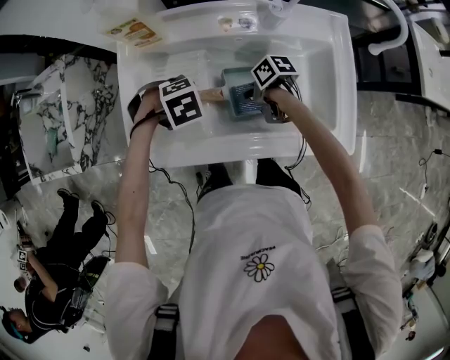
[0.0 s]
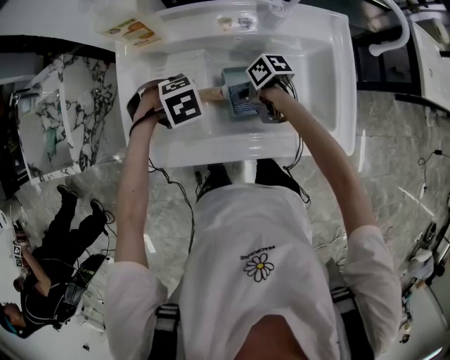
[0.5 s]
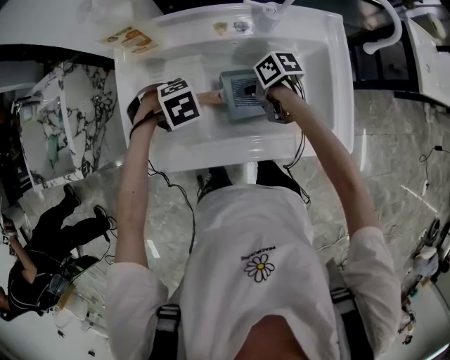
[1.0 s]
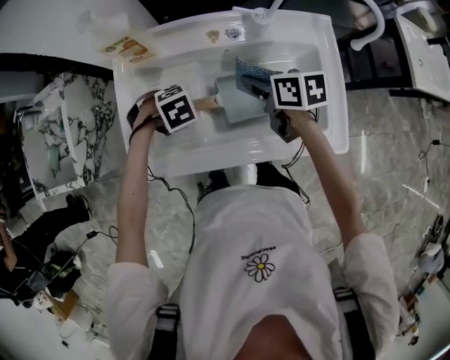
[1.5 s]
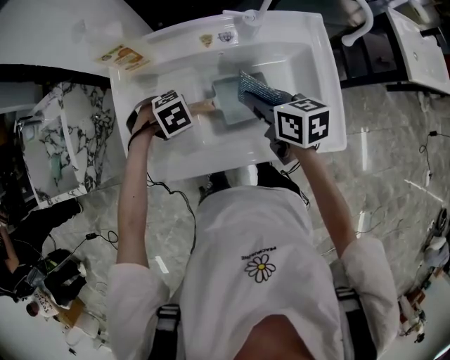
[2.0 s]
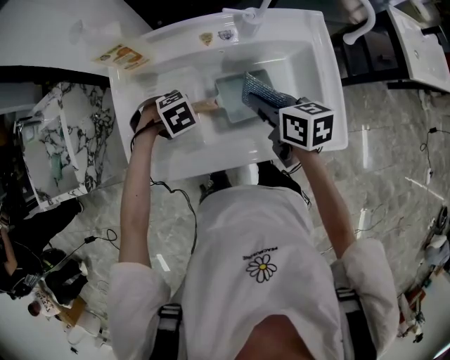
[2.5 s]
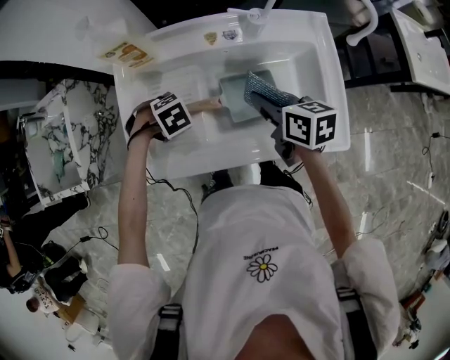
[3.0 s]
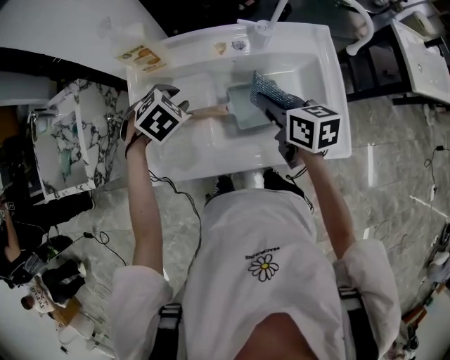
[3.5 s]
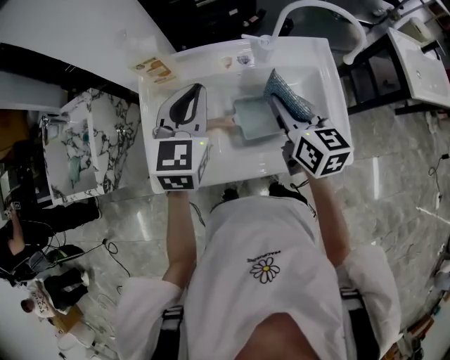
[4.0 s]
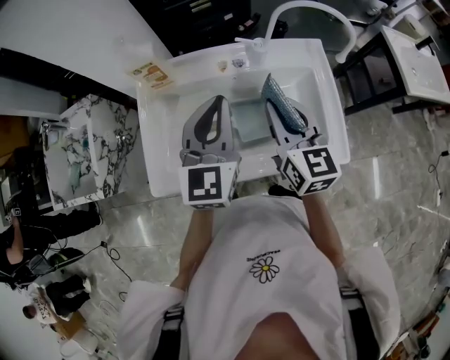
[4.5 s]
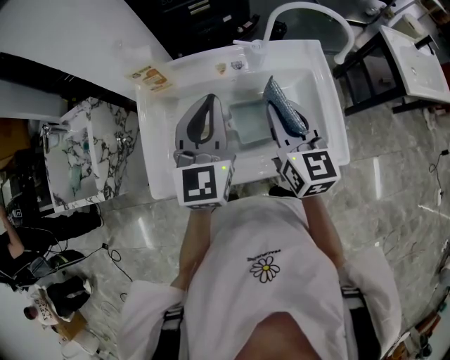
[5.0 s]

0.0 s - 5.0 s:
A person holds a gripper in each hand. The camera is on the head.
0.0 s - 2.5 s: The right gripper is displaced upward by roughly 15 cm, and changes its angle by about 50 degrees.
2.5 s - 5.0 s: The left gripper travels upward by roughly 30 cm, points its fingers approximately 80 degrees further upward, and closes up. The right gripper travels upward by some 15 cm, and changes its angle by approximately 40 degrees.

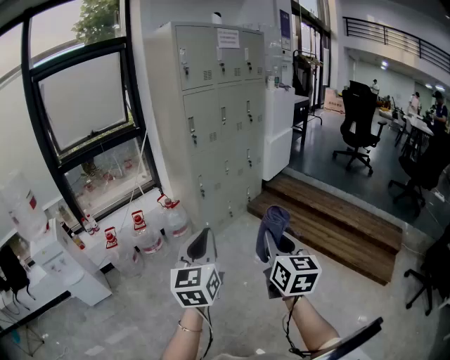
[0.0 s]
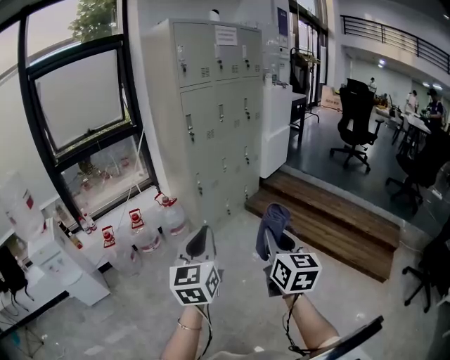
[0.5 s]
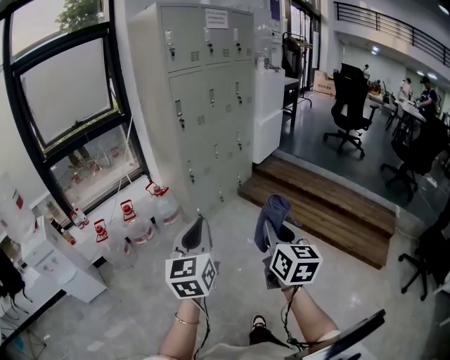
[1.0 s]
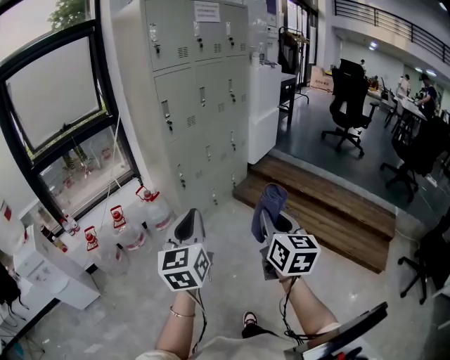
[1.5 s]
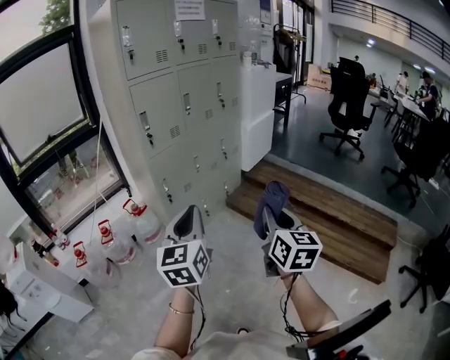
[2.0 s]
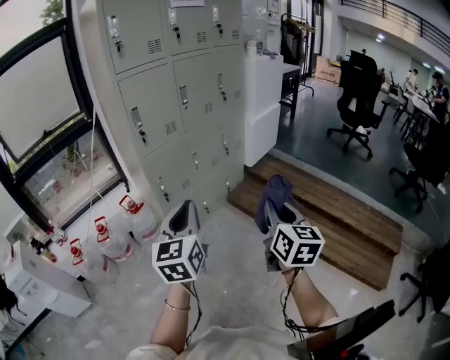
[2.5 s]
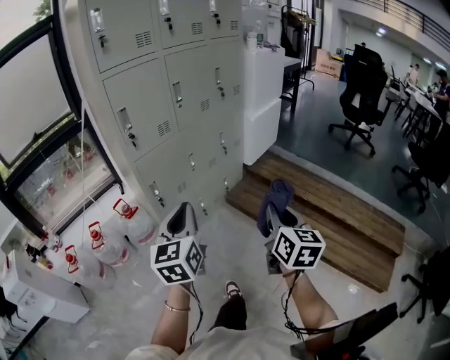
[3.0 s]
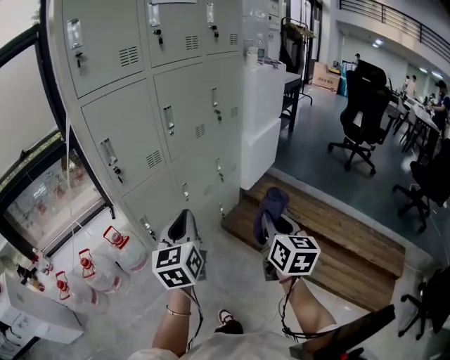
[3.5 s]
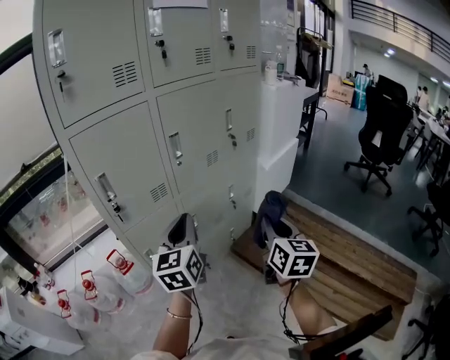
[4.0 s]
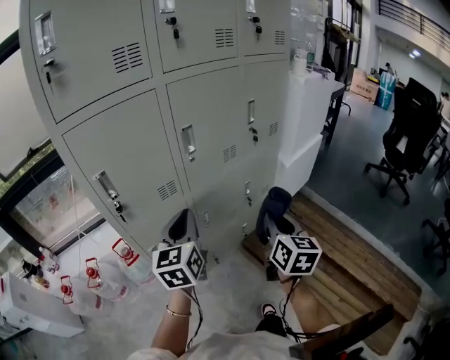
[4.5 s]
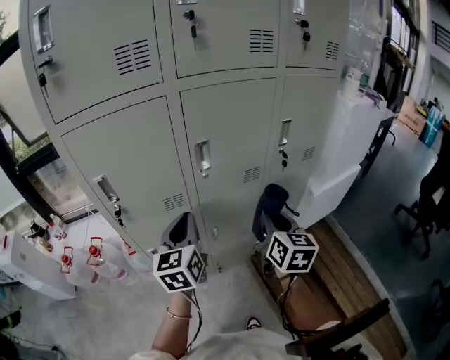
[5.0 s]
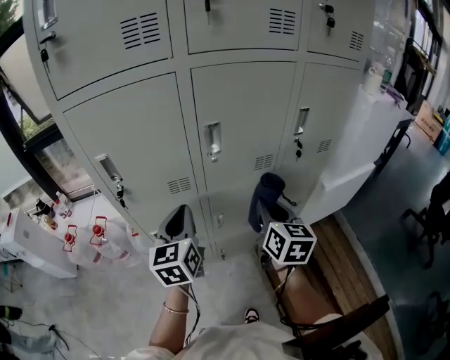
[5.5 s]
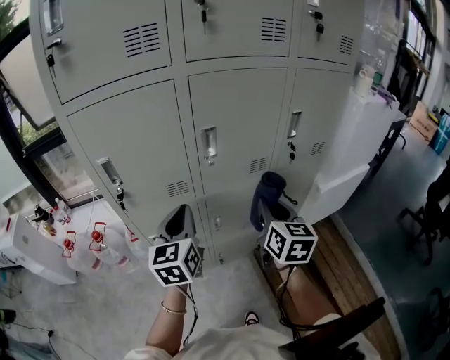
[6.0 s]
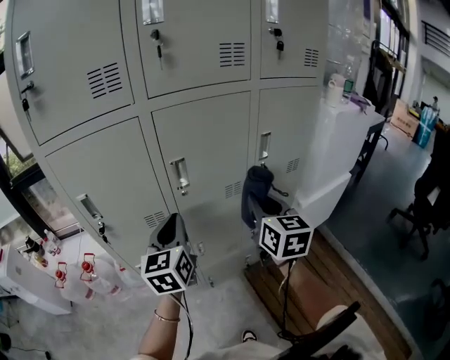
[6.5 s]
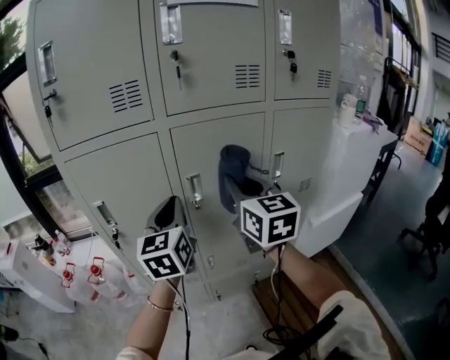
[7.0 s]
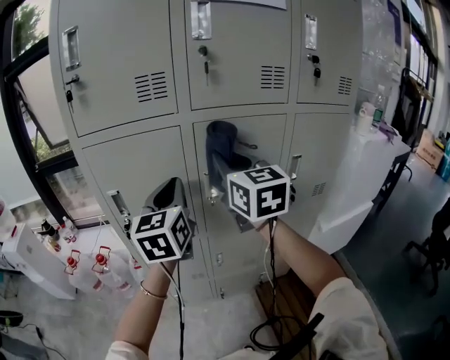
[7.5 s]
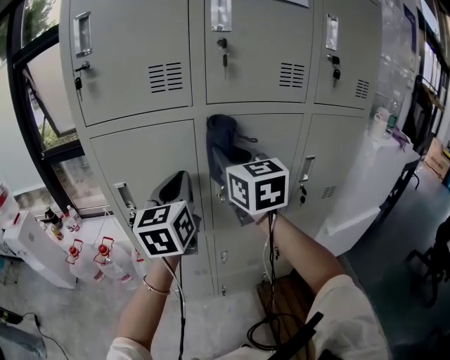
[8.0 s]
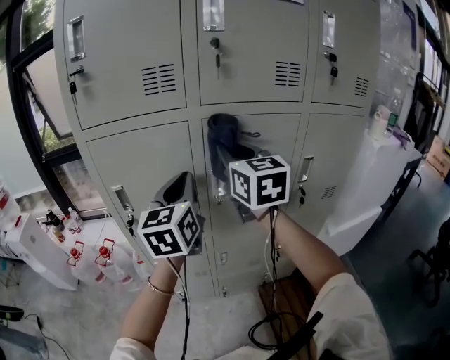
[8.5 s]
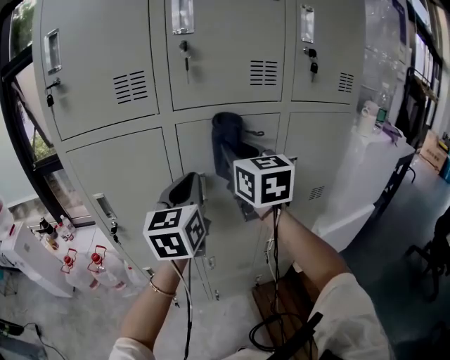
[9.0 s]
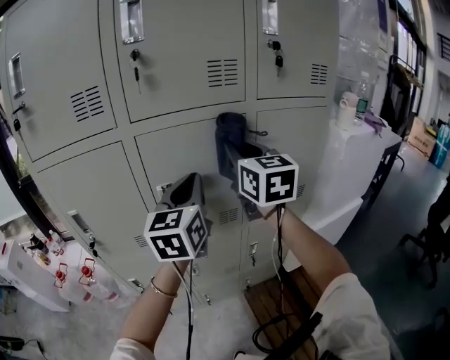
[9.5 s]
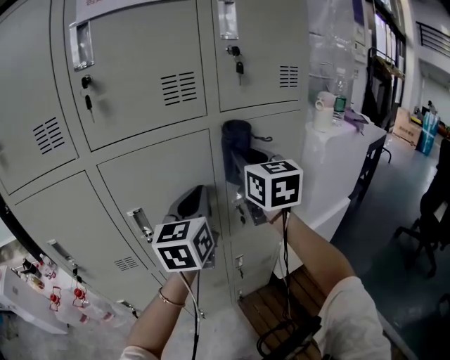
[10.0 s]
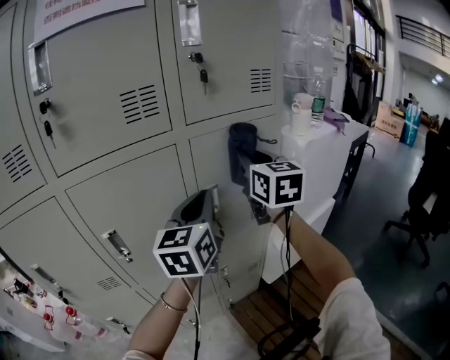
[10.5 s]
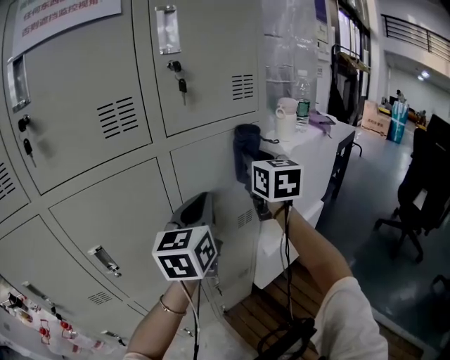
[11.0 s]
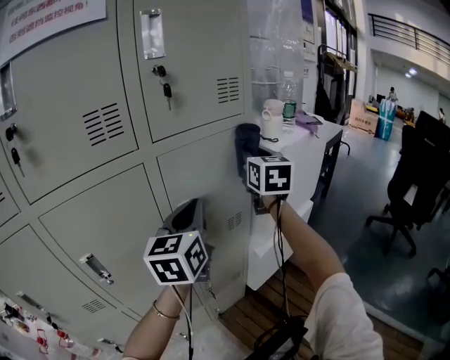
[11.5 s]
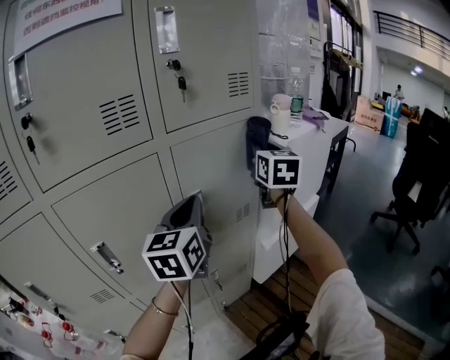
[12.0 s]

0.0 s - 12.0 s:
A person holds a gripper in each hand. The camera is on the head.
0.0 s - 2.0 s: The right gripper travels forward and to the right by roughly 30 cm; the left gripper shifts approximately 30 cm forward.
2.0 s - 4.0 s: Both grippers are carried forward, about 50 cm.
4.0 s - 6.0 s: The left gripper ends up approximately 15 cm from where it was, and changes its angle by some 30 degrees. The right gripper changes place by about 25 cm, and rotates some 30 degrees.
6.0 s - 8.0 s: The right gripper goes about 30 cm upward, to the left and forward, and turns by approximately 30 degrees. Meanwhile the left gripper shifts roughly 20 cm upward and forward.
8.0 s - 10.0 s: The two grippers go some 30 cm to the right.
10.0 s - 12.0 s: The right gripper moves to the right and forward, some 20 cm, and swivels approximately 30 degrees. Meanwhile the left gripper shifts roughly 10 cm to the right.

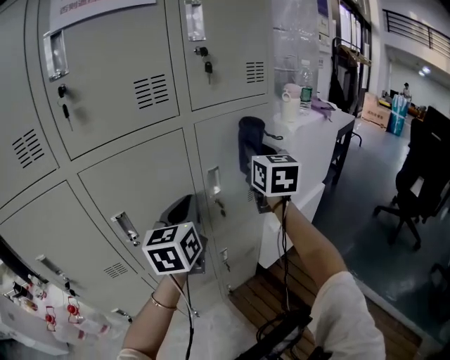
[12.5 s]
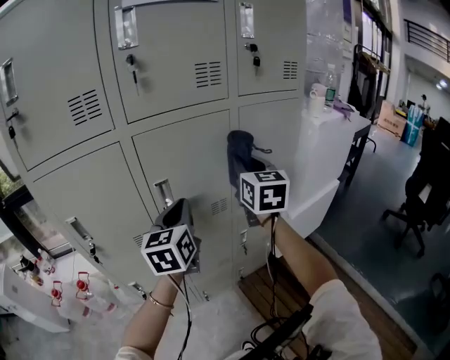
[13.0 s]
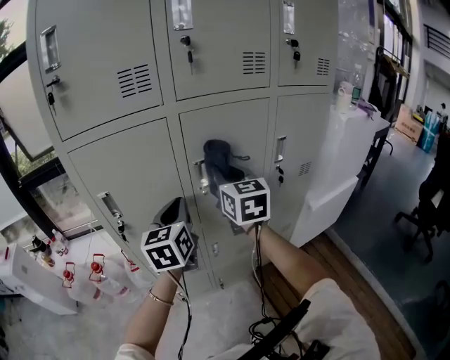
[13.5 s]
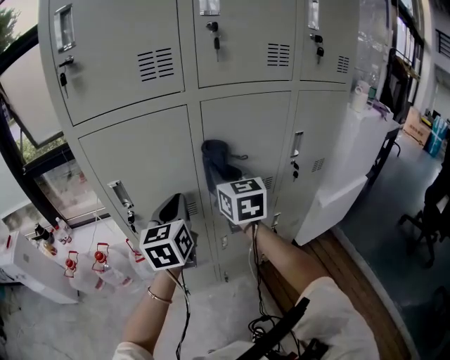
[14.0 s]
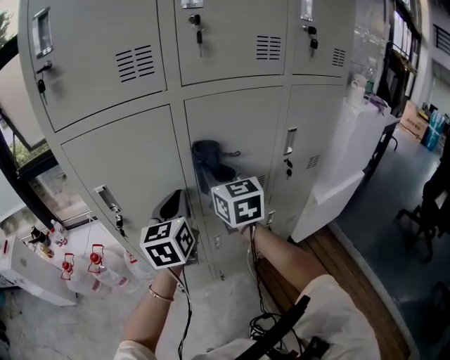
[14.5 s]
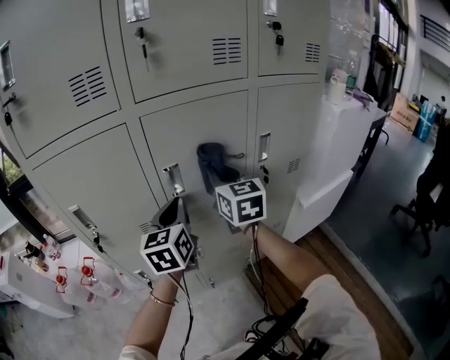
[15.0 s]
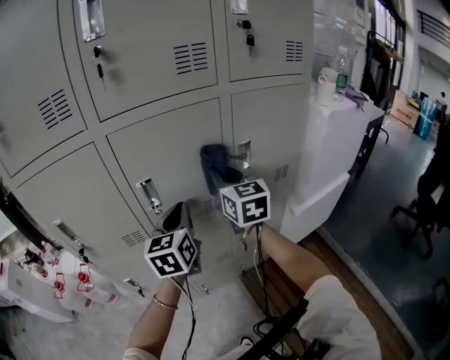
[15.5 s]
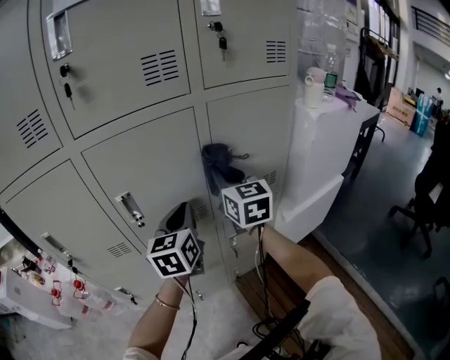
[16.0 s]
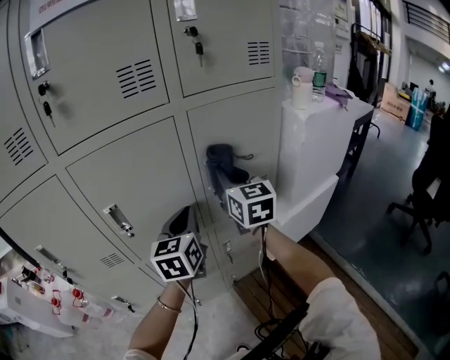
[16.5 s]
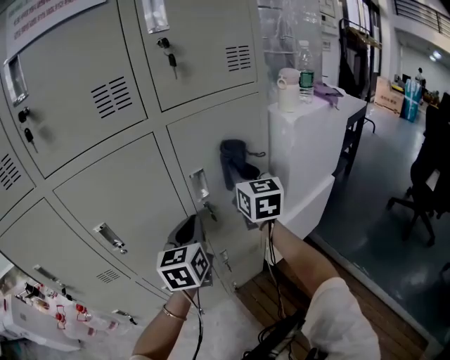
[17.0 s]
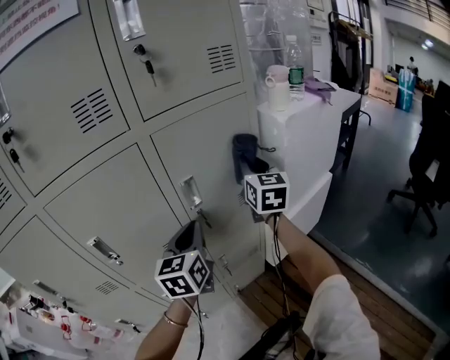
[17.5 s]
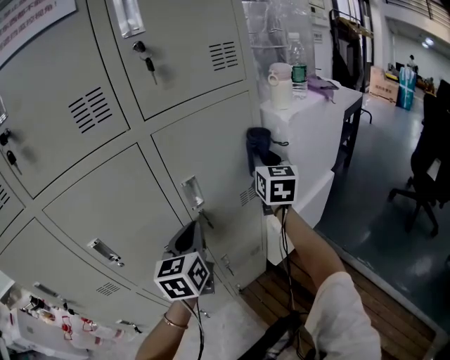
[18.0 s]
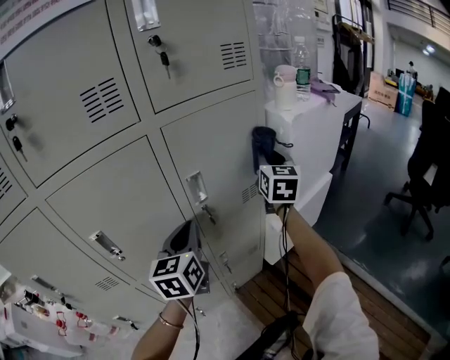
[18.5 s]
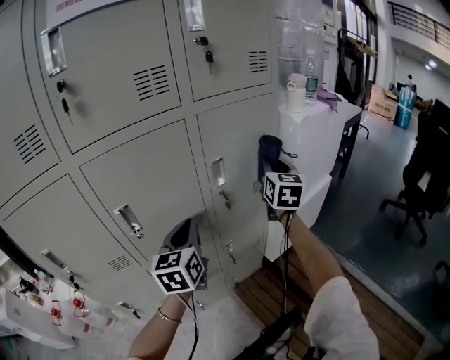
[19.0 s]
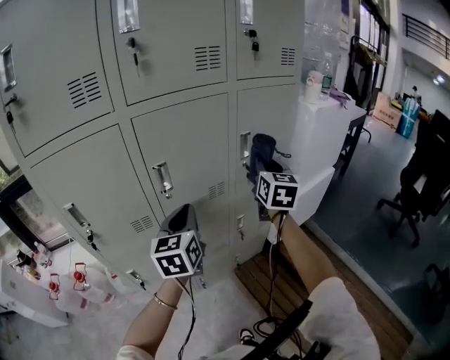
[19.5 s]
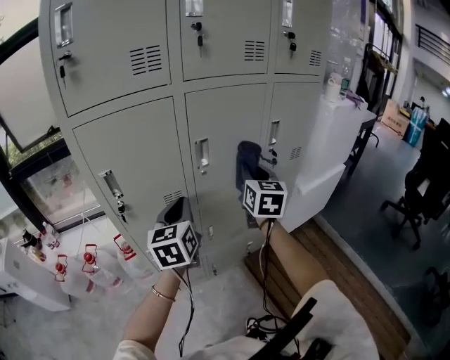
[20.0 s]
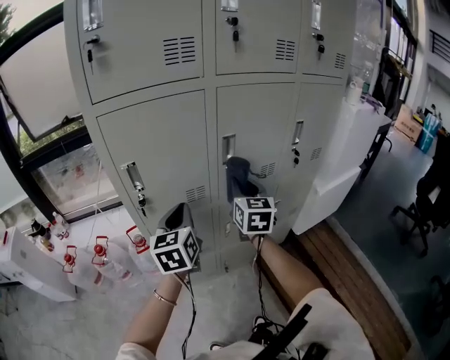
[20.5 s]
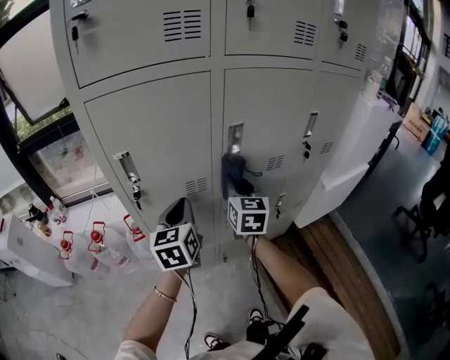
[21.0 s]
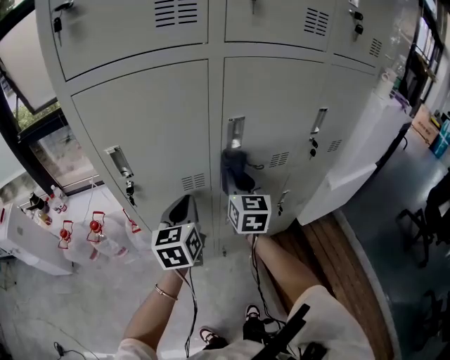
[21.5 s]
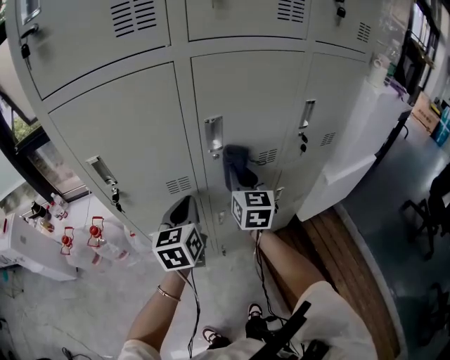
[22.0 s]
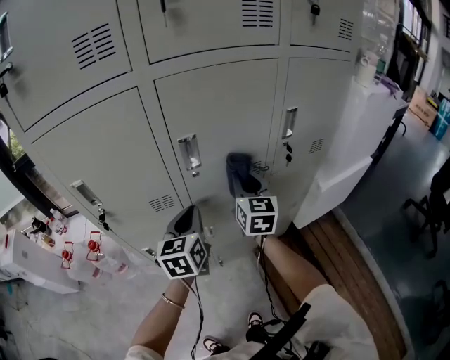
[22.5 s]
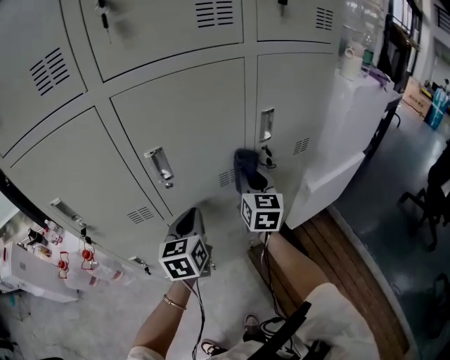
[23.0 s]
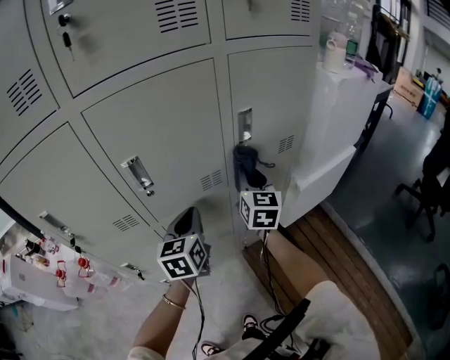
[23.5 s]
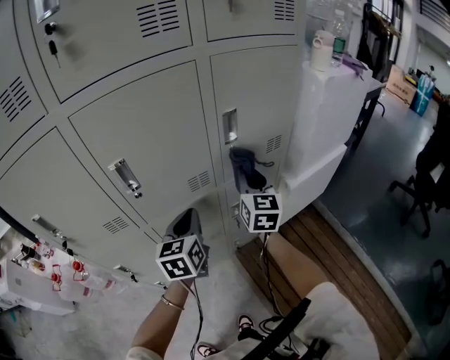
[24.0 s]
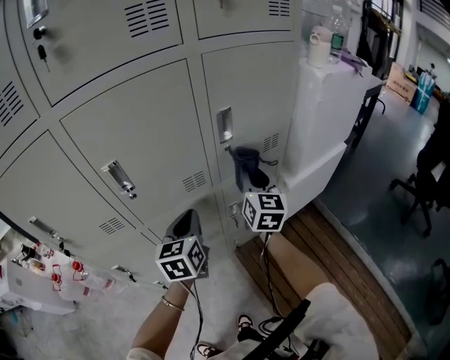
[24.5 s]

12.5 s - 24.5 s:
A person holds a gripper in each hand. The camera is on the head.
12.5 s - 14.5 s: Both grippers move to the left, about 35 cm. The right gripper rotates about 30 degrees.
14.5 s - 16.5 s: Both grippers travel together to the right, approximately 30 cm.
16.5 s - 18.5 s: The right gripper goes some 20 cm to the right and forward, and changes its angle by approximately 30 degrees.
18.5 s - 20.5 s: The pair of grippers is taken to the left and backward, about 50 cm.
20.5 s - 22.5 s: The right gripper moves to the right and forward, approximately 15 cm; the left gripper moves to the right, forward and downward, approximately 15 cm.
22.5 s - 24.5 s: Both grippers travel together to the right, approximately 20 cm.
